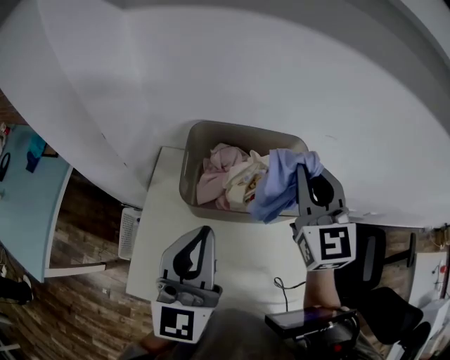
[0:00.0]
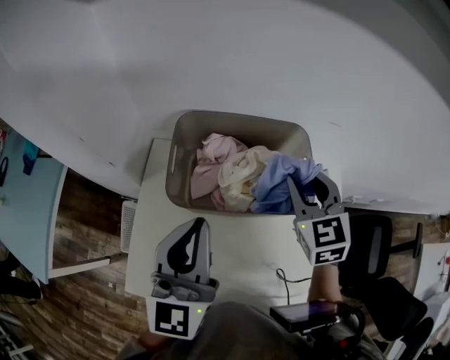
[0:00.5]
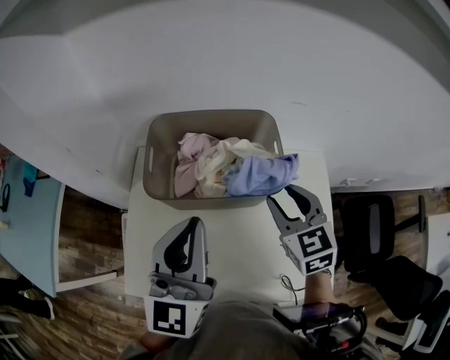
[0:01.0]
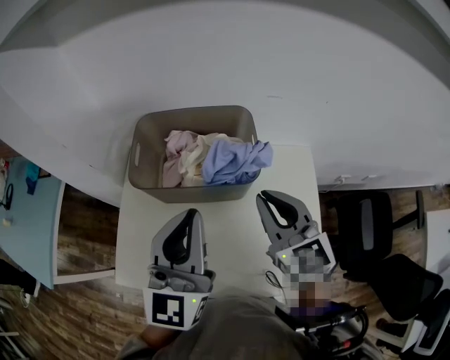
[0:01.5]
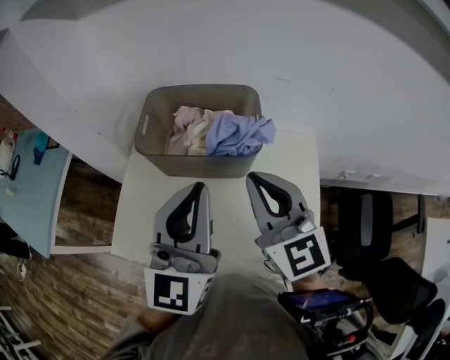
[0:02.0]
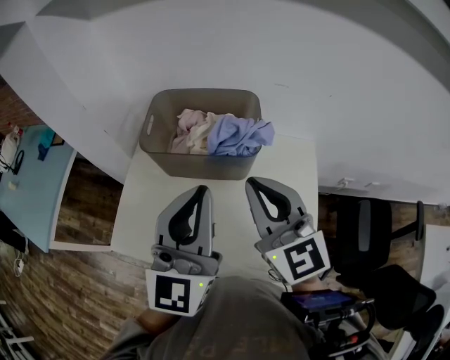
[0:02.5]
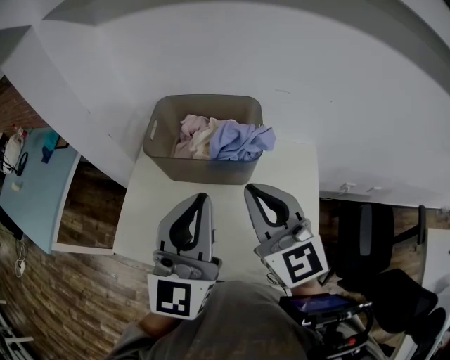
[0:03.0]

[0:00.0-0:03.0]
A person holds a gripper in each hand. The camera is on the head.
0:00.0 to 0:01.5: The left gripper heads to the right, covering approximately 15 cm. The right gripper goes some 15 cm backward, to the right and downward.
0:01.5 to 0:03.0: The left gripper is displaced backward by about 5 cm, while the right gripper is displaced backward and upward by roughly 10 cm.

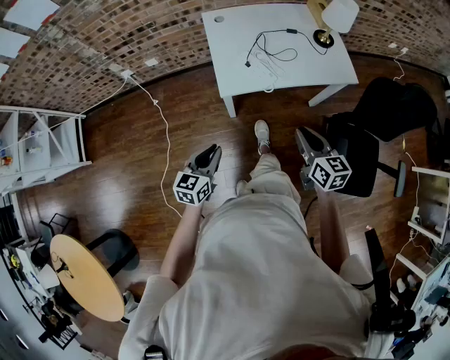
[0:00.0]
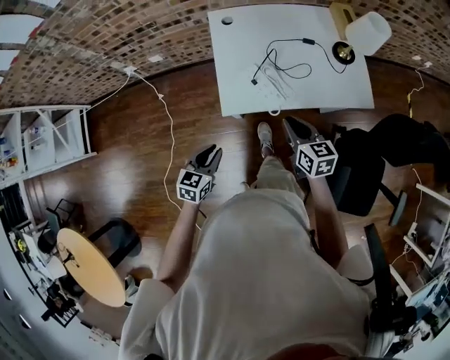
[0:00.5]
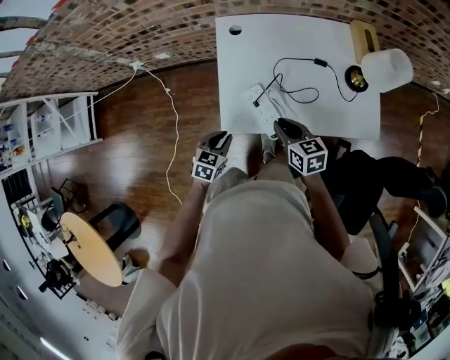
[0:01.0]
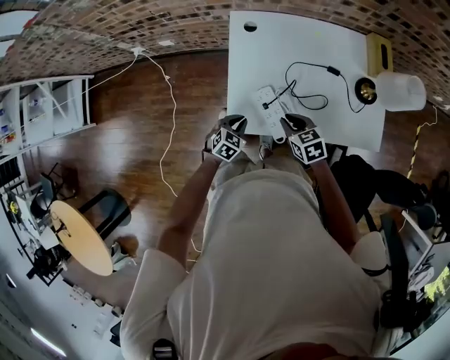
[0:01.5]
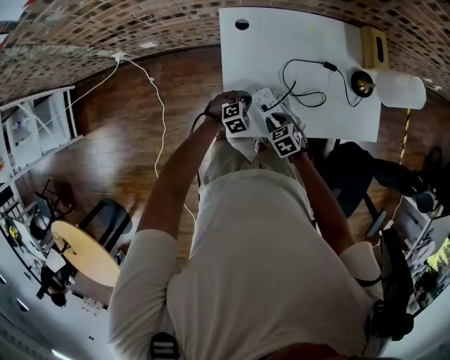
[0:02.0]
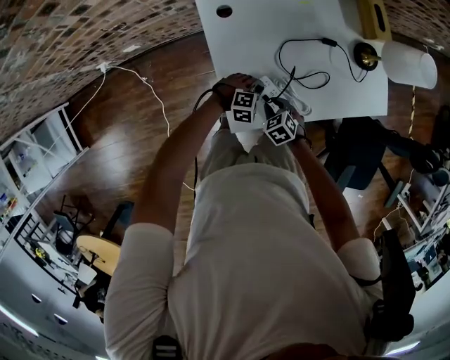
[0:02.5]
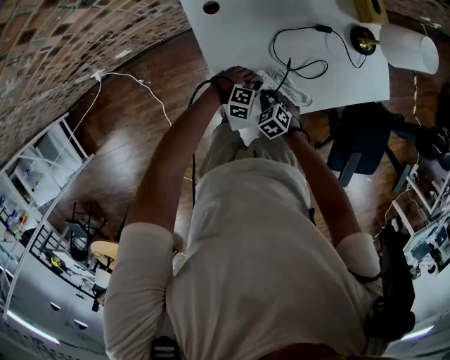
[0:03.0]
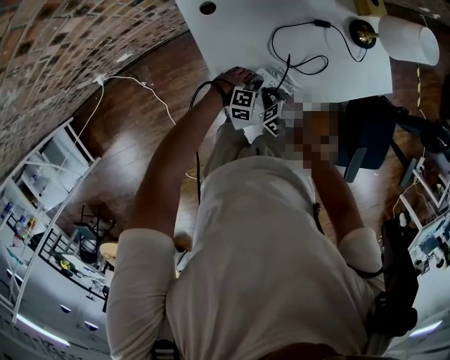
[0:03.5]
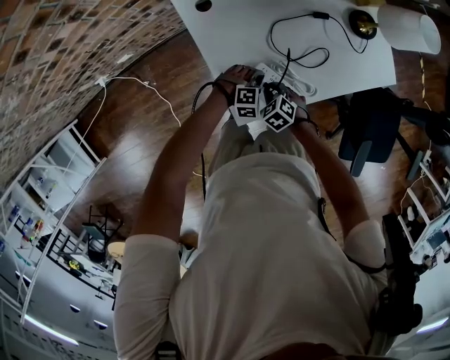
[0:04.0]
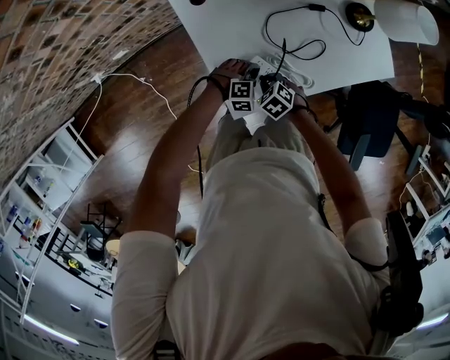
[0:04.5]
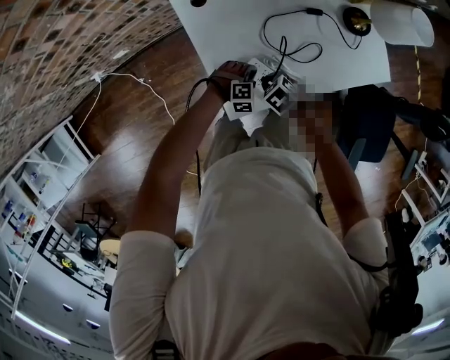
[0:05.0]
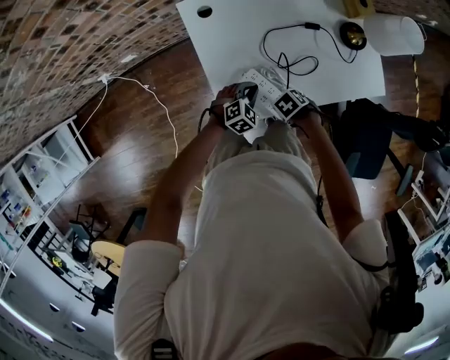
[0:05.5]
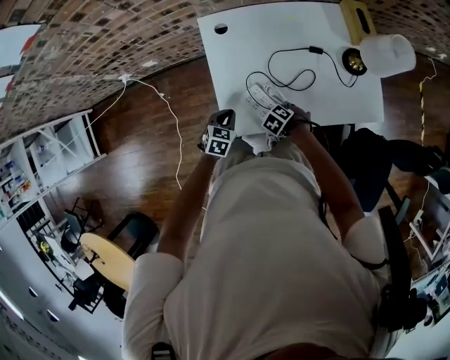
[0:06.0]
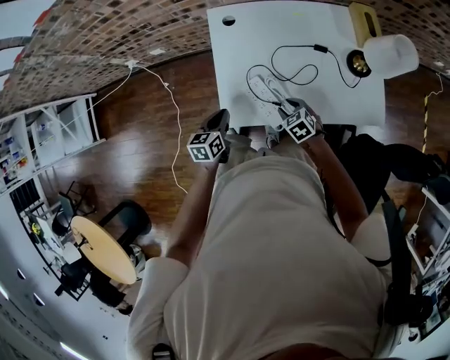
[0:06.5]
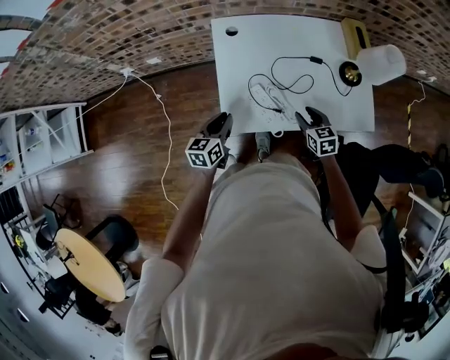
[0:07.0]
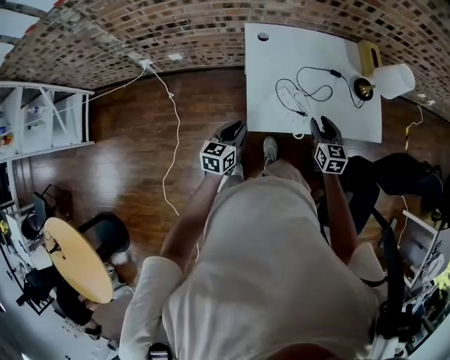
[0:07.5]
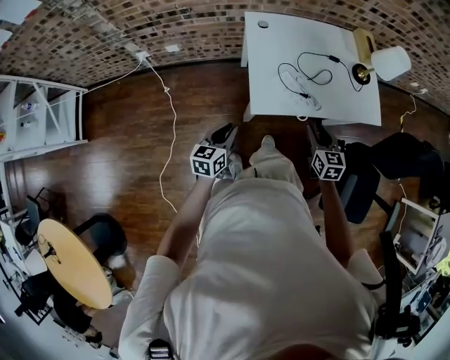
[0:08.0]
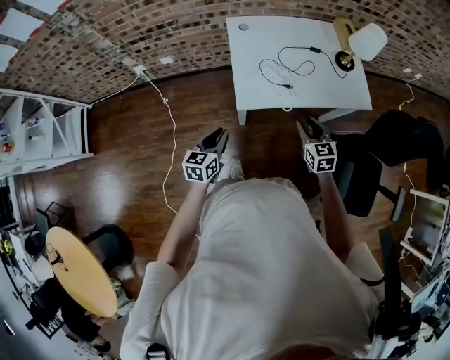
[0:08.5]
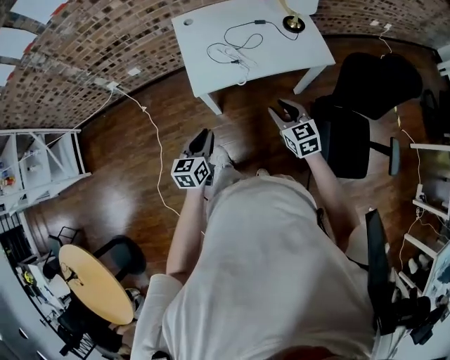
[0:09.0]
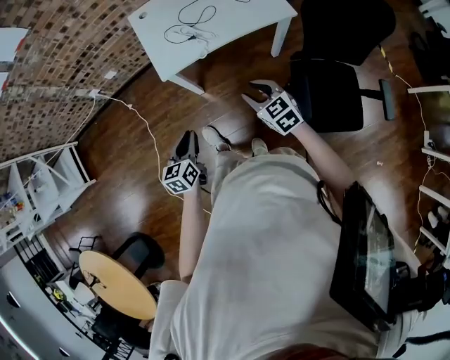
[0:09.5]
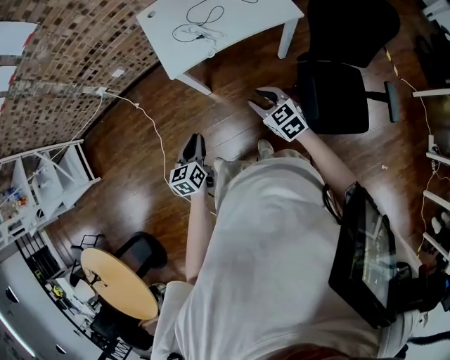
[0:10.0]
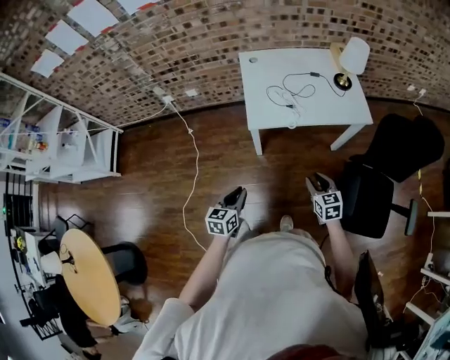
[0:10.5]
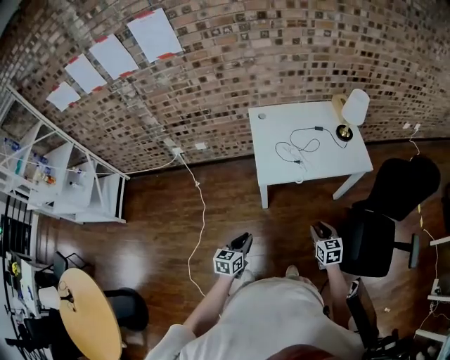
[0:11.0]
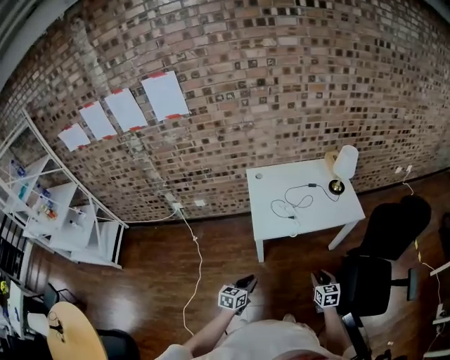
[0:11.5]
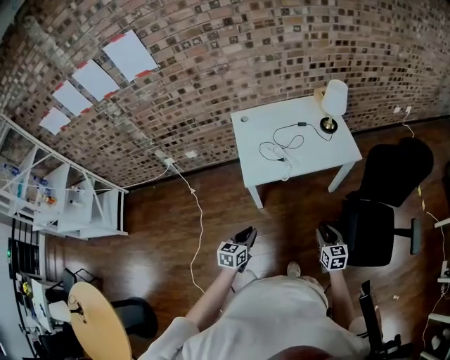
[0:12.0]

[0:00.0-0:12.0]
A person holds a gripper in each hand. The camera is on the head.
0:00.0 to 0:02.0: The two grippers go roughly 50 cm forward and downward. The right gripper tips its fingers downward by about 40 degrees. Meanwhile the left gripper points its fingers approximately 40 degrees further downward.
0:02.0 to 0:04.0: The left gripper changes place by some 10 cm, and rotates roughly 40 degrees. Meanwhile the right gripper moves downward, approximately 10 cm.
0:04.0 to 0:06.0: The left gripper moves upward, about 10 cm, and rolls counterclockwise, seen from behind, by about 70 degrees. Meanwhile the right gripper changes place by approximately 10 cm, and swivels roughly 20 degrees.
0:06.0 to 0:08.0: The left gripper ends up approximately 30 cm from where it was, and changes its angle by about 40 degrees. The right gripper shifts about 25 cm upward, and tips its fingers upward by some 50 degrees.
0:08.0 to 0:10.0: The grippers both shift backward and to the right by some 30 cm.
0:10.0 to 0:12.0: The right gripper moves approximately 10 cm to the left and comes back, and rotates roughly 30 degrees; the left gripper is displaced forward and to the left by about 10 cm.

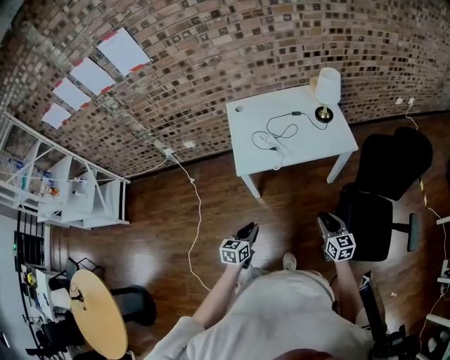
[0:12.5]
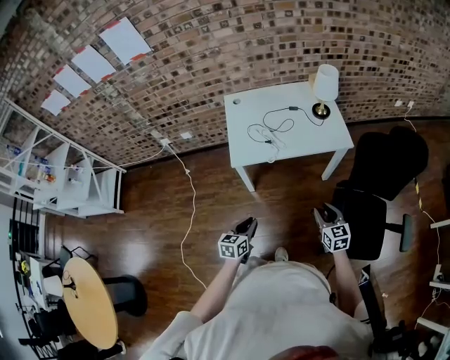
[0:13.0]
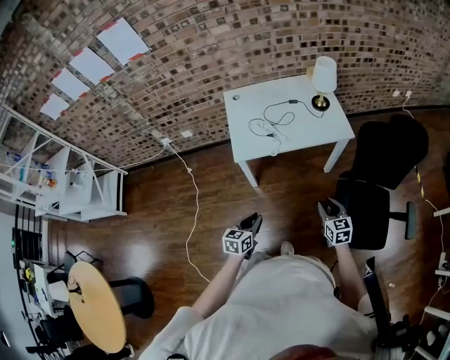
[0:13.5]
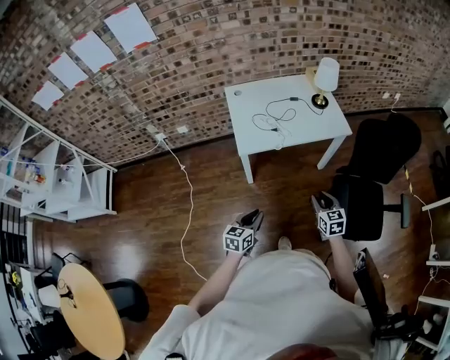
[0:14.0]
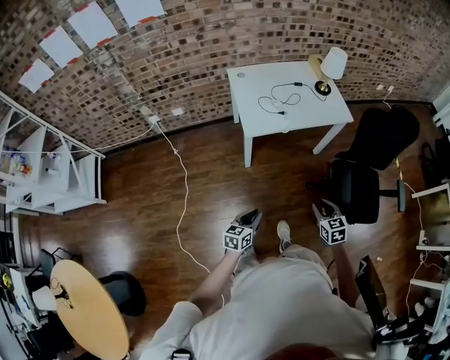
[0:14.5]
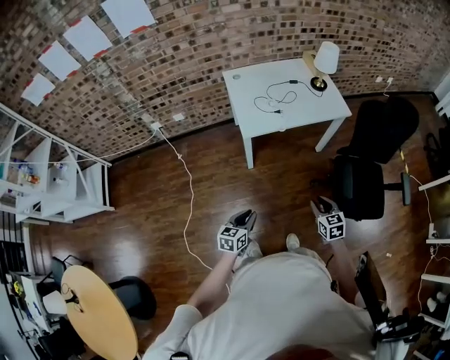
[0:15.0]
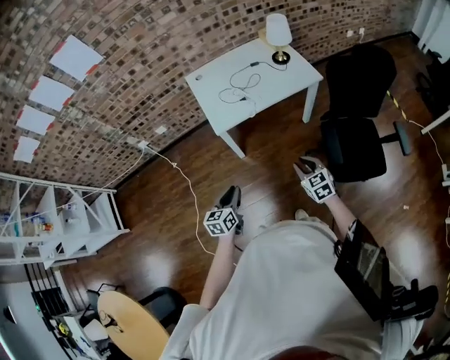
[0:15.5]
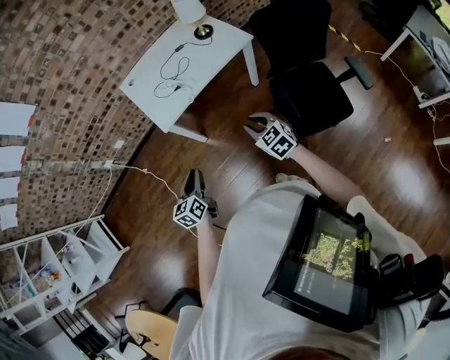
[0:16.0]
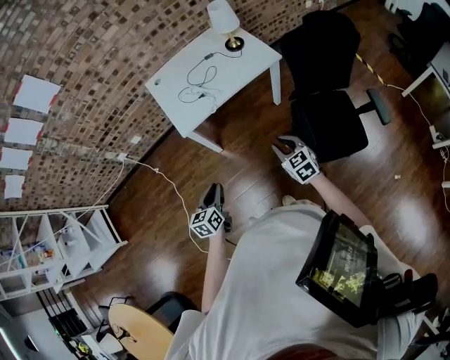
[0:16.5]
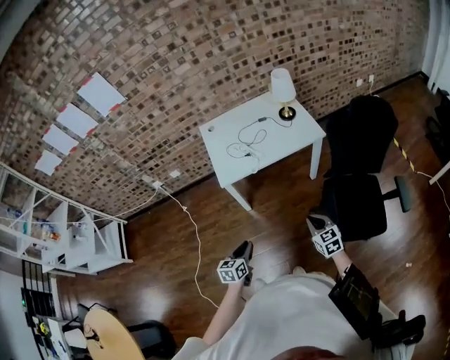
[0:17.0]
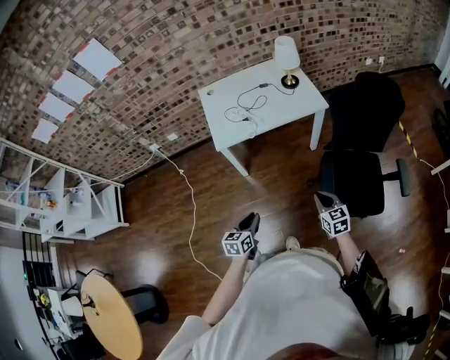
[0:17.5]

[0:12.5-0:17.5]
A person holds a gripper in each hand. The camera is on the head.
0:12.5 to 0:15.0: The grippers both shift backward and to the left by about 20 cm.
0:15.0 to 0:17.5: The grippers both shift to the right by approximately 20 cm. The right gripper closes.

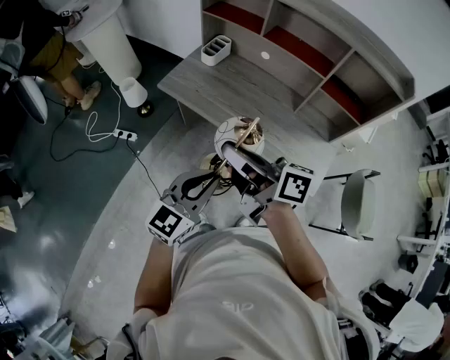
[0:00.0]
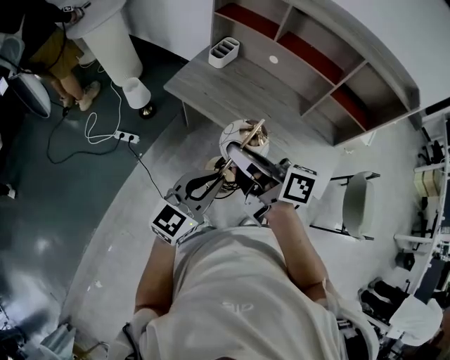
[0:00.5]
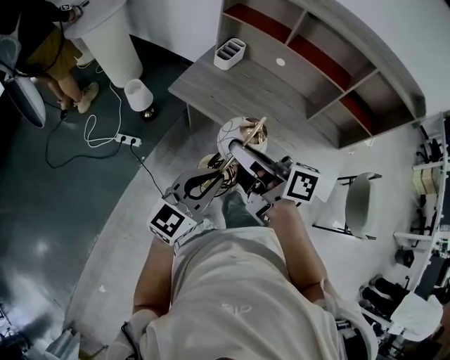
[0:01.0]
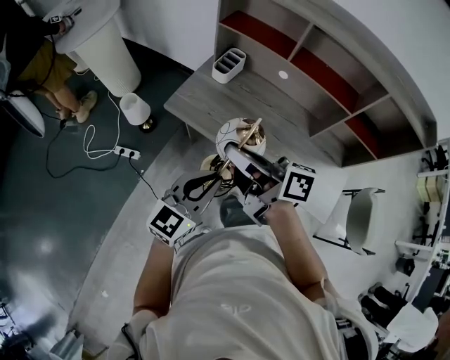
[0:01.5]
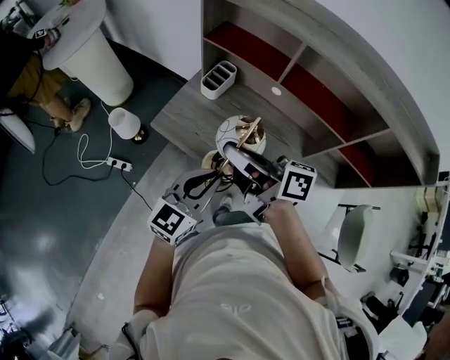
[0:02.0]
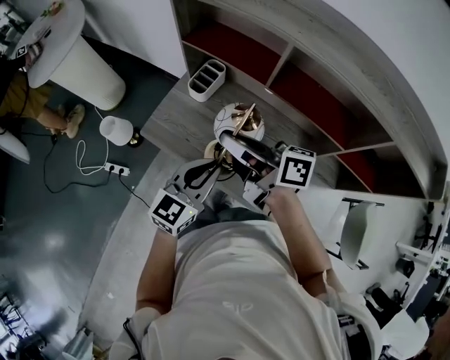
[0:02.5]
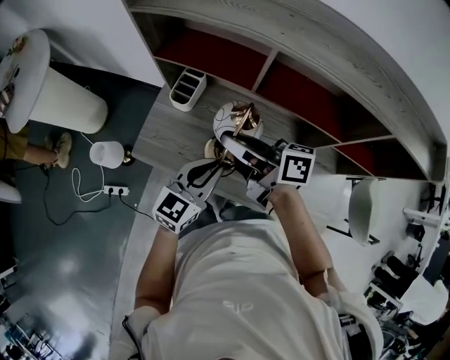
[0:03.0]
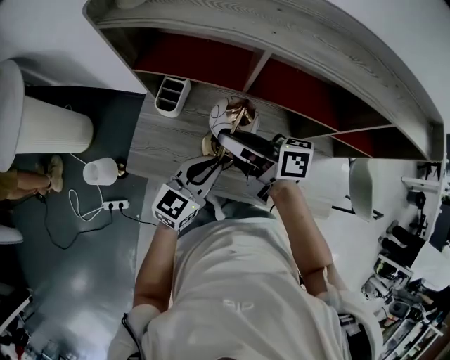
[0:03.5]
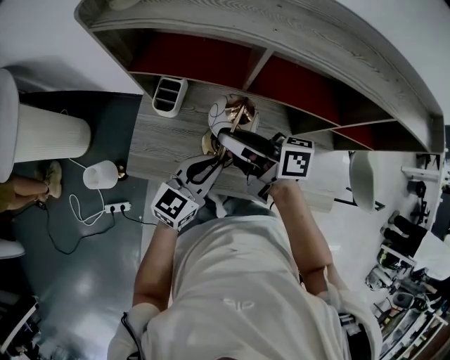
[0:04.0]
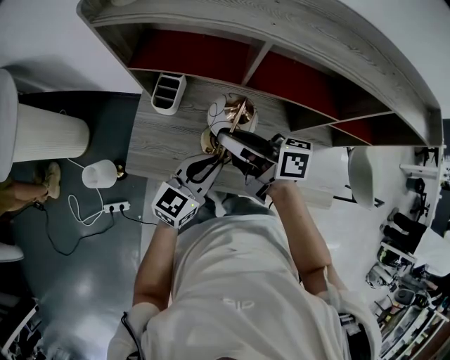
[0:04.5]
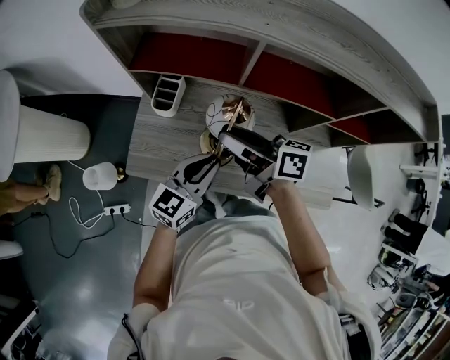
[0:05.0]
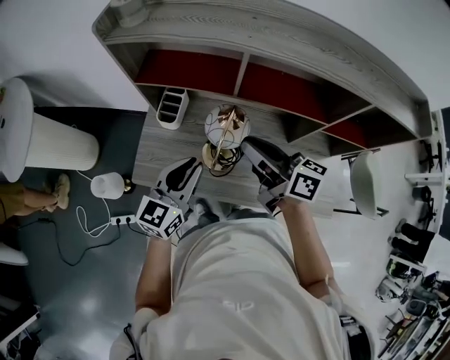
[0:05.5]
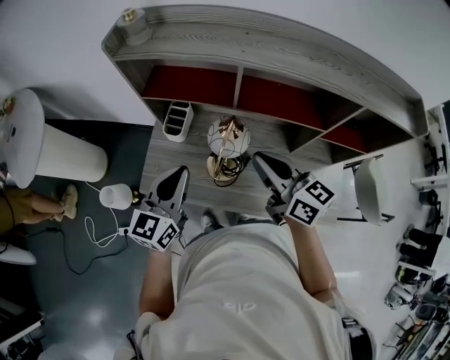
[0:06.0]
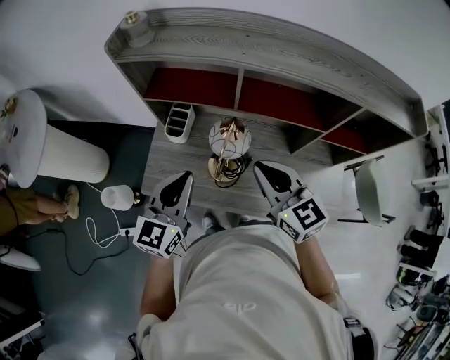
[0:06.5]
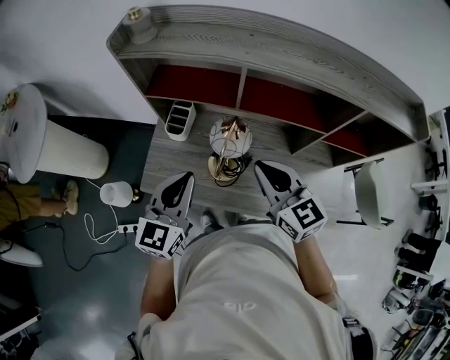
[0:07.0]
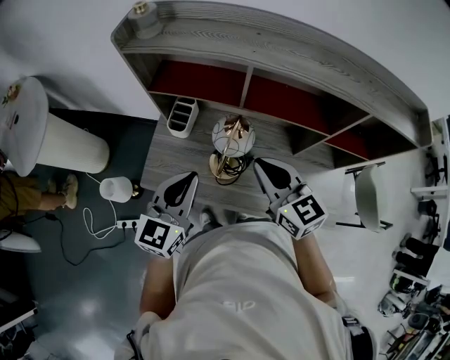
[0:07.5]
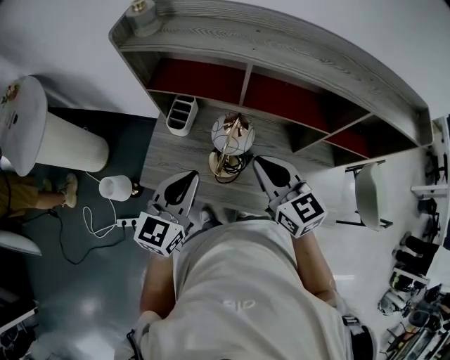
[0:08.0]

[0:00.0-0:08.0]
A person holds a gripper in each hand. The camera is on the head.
0:00.0 to 0:02.0: The grippers both shift forward by approximately 25 cm.
0:02.0 to 0:04.0: The two grippers go some 15 cm forward. The left gripper swivels about 30 degrees.
0:04.0 to 0:06.0: The right gripper travels to the right, backward and upward by some 10 cm, swivels approximately 40 degrees, and opens and closes again; the left gripper shifts about 15 cm upward and to the left, and changes its angle by about 20 degrees.
0:06.0 to 0:08.0: The right gripper swivels approximately 20 degrees.
